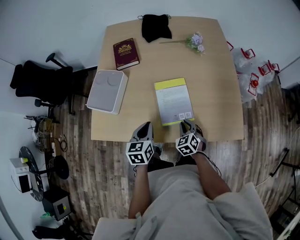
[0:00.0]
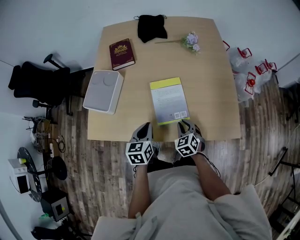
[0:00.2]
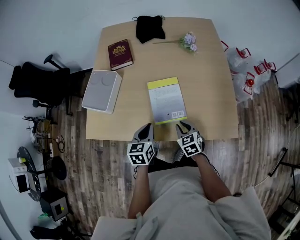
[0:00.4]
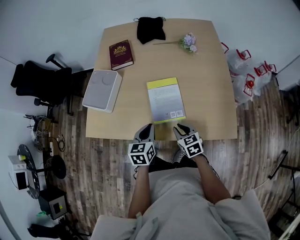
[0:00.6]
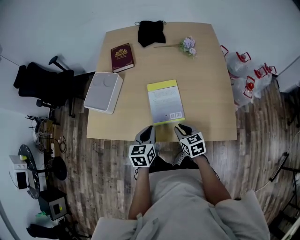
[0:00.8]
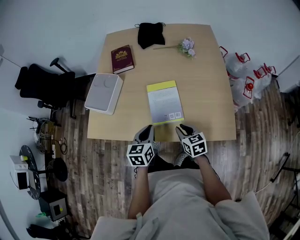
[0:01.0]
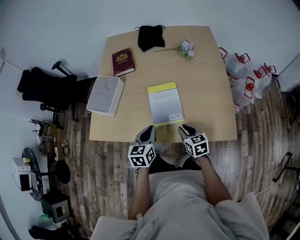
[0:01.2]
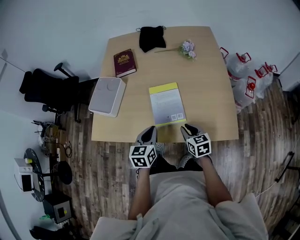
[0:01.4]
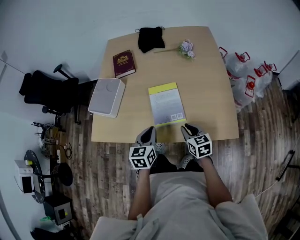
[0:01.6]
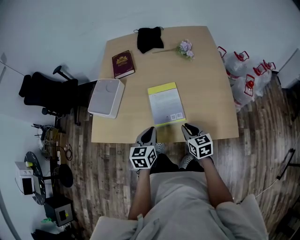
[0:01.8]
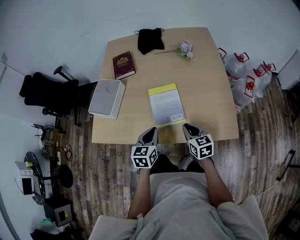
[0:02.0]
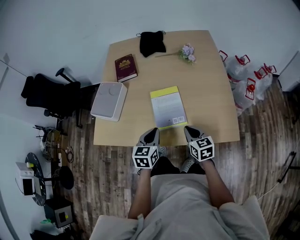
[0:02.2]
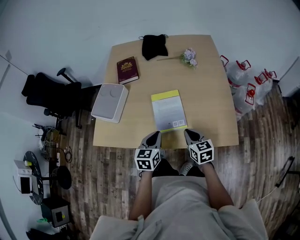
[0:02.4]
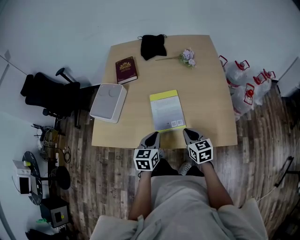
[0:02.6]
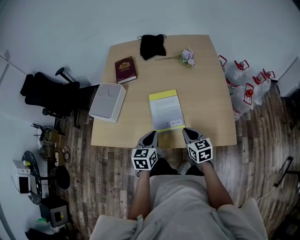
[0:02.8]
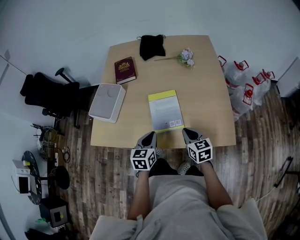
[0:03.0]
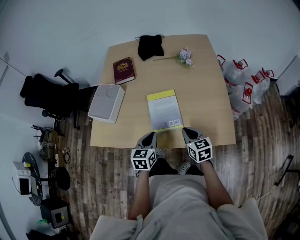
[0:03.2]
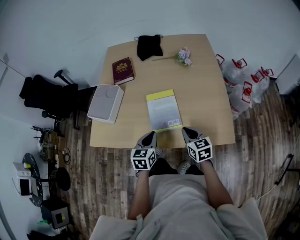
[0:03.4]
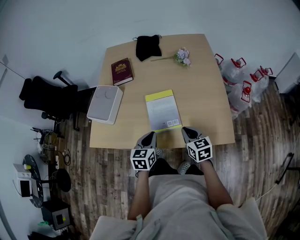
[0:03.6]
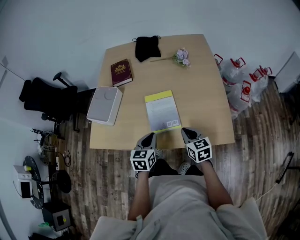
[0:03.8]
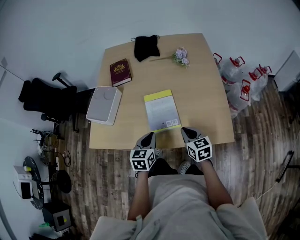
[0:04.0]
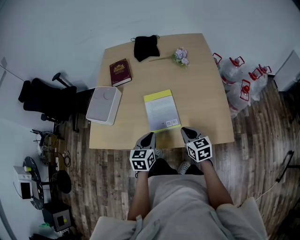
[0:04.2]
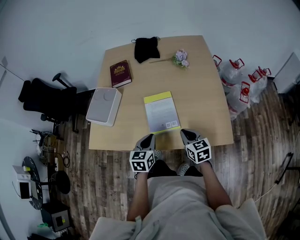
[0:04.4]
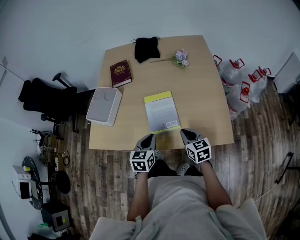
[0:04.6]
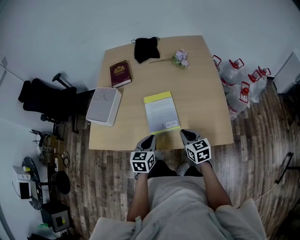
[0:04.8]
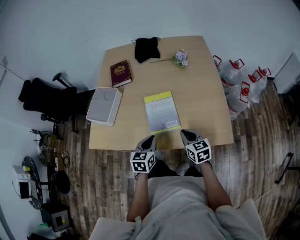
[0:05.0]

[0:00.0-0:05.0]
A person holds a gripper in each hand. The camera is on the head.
0:00.0 to 0:01.6: The left gripper shifts about 10 cm to the right and backward. Meanwhile the right gripper shifts about 10 cm upward and to the right, and turns by some 40 degrees.
0:01.6 to 0:05.0: The grippers stay close to where they were, moving slightly.

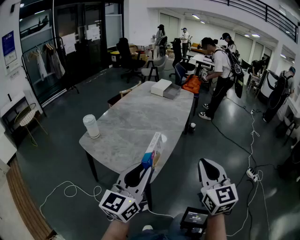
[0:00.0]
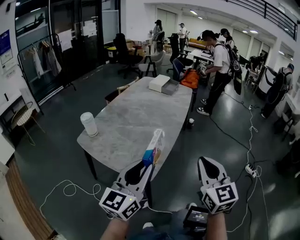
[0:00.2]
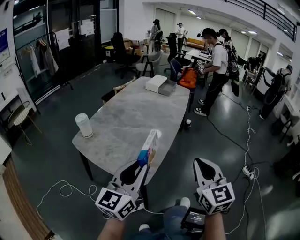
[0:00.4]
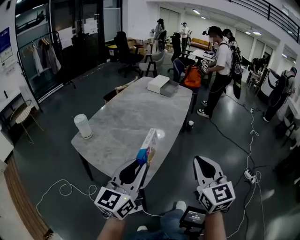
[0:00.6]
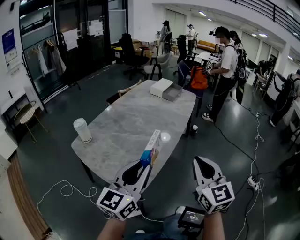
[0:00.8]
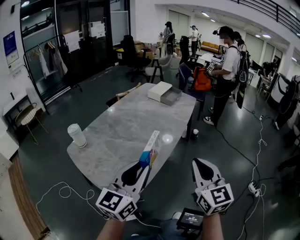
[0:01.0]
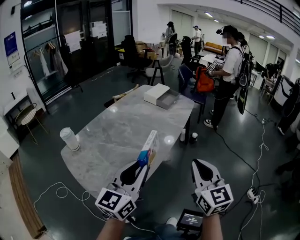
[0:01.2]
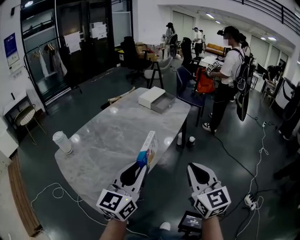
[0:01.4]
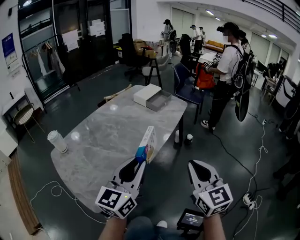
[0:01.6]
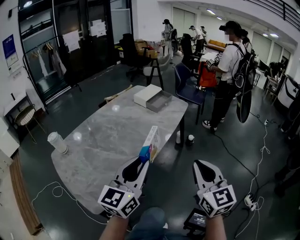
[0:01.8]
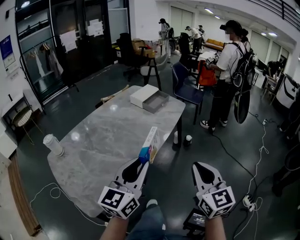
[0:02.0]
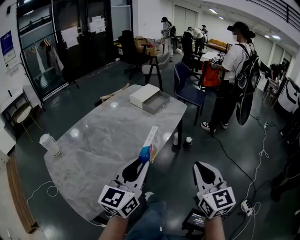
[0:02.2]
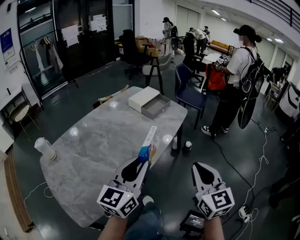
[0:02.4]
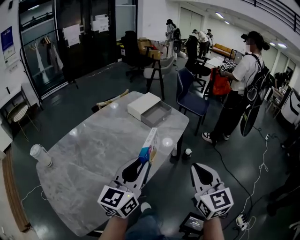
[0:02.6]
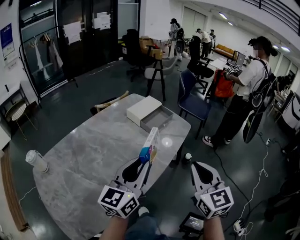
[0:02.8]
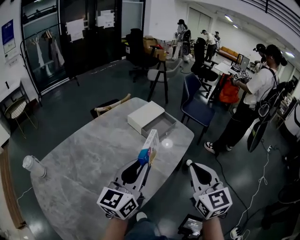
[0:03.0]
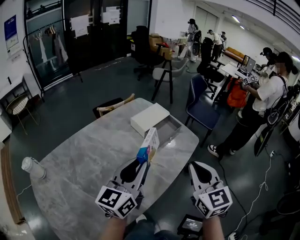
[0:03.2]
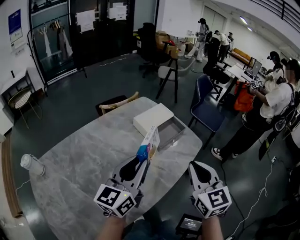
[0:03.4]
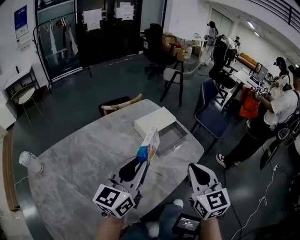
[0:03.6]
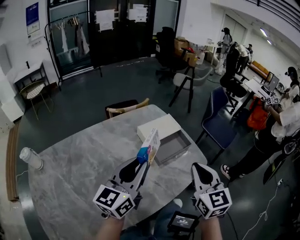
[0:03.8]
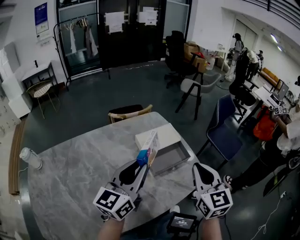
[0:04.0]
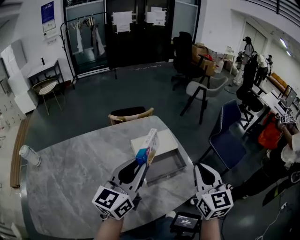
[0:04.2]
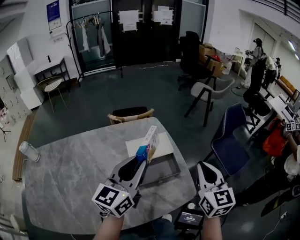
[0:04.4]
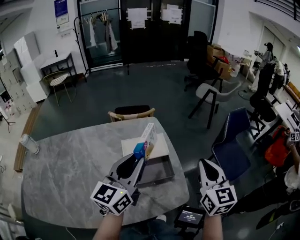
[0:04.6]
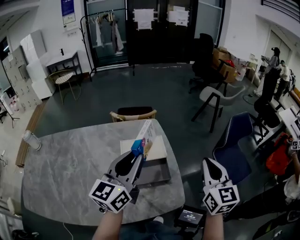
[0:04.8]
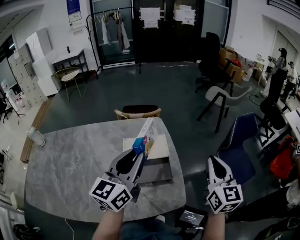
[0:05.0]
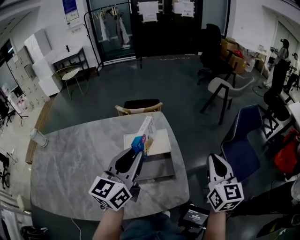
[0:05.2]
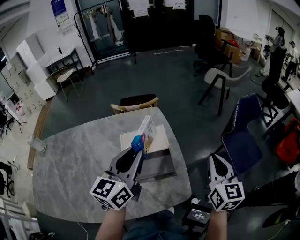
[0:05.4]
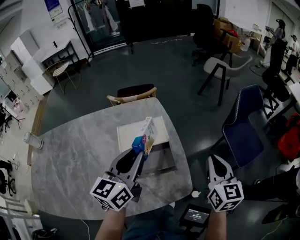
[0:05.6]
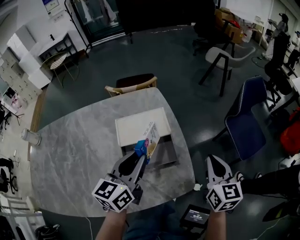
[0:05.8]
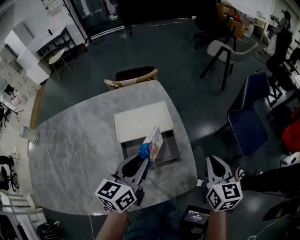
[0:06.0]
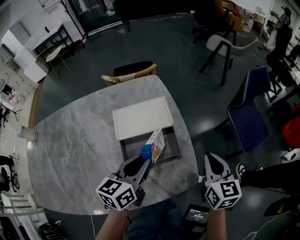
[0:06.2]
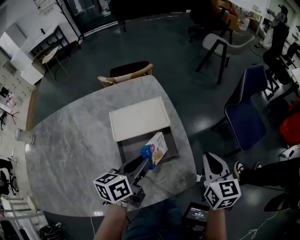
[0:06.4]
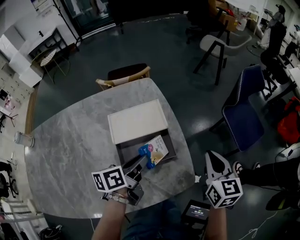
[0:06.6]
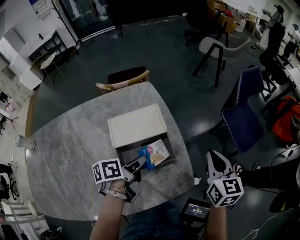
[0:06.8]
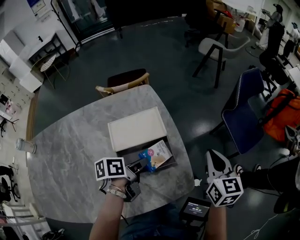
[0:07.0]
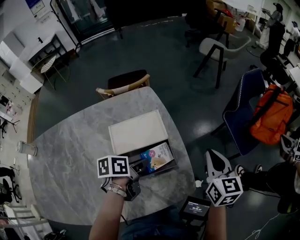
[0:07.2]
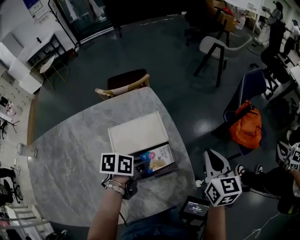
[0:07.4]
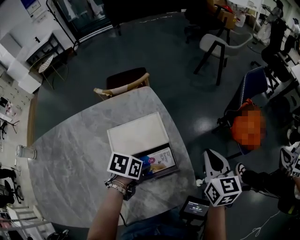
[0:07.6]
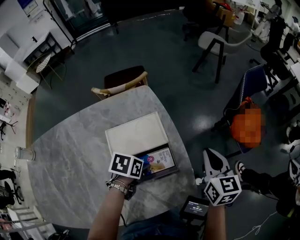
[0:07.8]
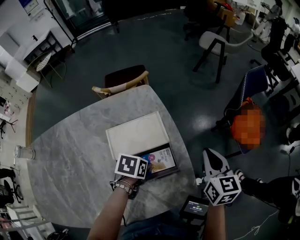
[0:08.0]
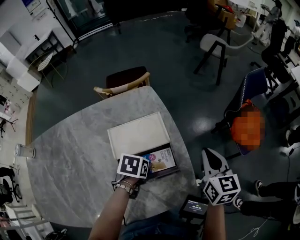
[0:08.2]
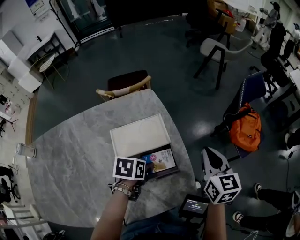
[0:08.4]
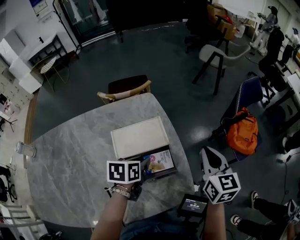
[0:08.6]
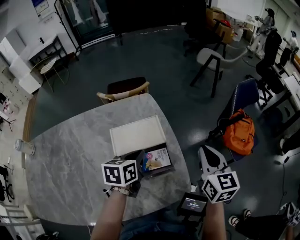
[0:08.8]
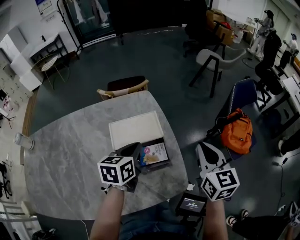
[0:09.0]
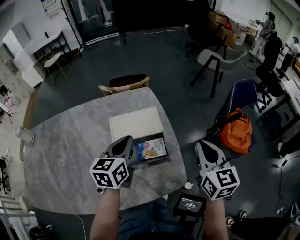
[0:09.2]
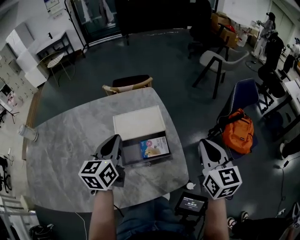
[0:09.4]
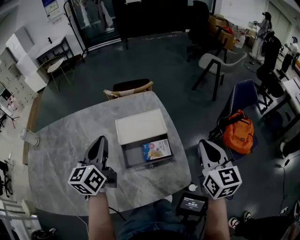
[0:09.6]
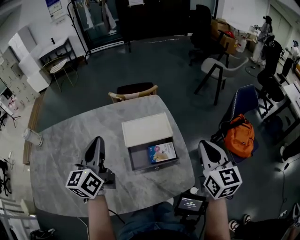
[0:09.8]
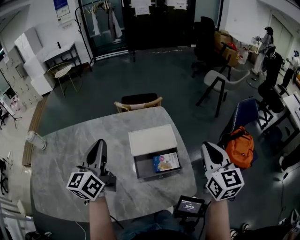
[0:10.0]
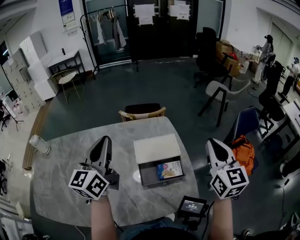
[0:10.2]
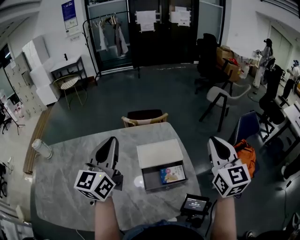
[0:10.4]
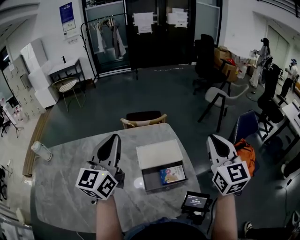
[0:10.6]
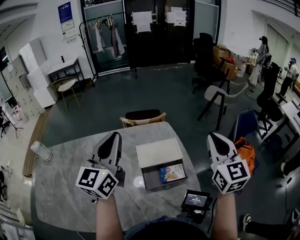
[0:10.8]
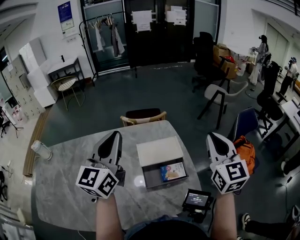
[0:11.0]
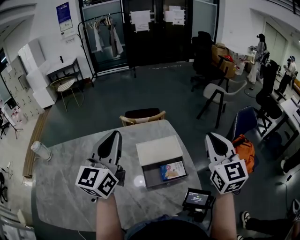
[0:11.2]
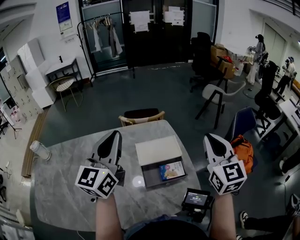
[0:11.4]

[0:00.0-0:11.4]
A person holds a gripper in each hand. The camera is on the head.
0:00.0 to 0:01.4: Both grippers travel together forward and to the right, some 30 cm.
0:01.4 to 0:02.8: Both grippers move forward, about 25 cm.
0:02.8 to 0:04.2: The two grippers go approximately 35 cm forward. The left gripper swivels roughly 20 degrees.
0:04.2 to 0:05.6: Both grippers move to the right, forward and downward, some 15 cm.
0:05.6 to 0:07.2: The right gripper changes place by approximately 5 cm. The left gripper is displaced downward by approximately 20 cm, and tilts its fingers about 30 degrees downward.
0:07.2 to 0:08.6: The left gripper rotates some 20 degrees.
0:08.6 to 0:10.0: The right gripper goes approximately 10 cm upward and to the left, while the left gripper heads upward and to the left, covering about 30 cm, tips its fingers upward by about 50 degrees, and closes.
0:10.0 to 0:11.4: The grippers both shift upward by approximately 10 cm.

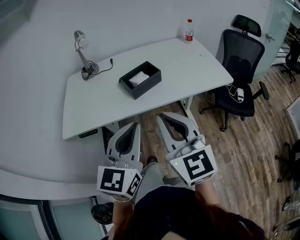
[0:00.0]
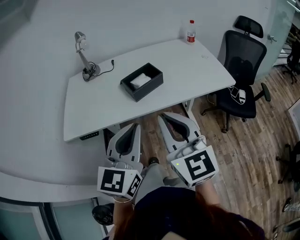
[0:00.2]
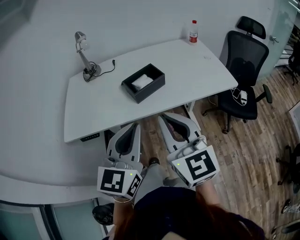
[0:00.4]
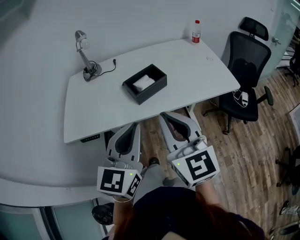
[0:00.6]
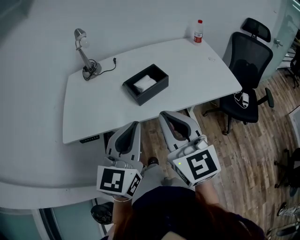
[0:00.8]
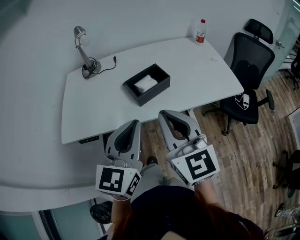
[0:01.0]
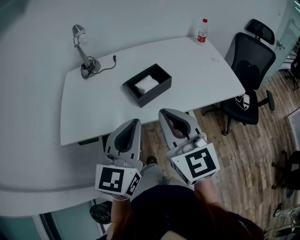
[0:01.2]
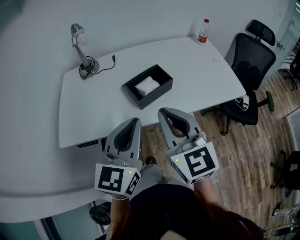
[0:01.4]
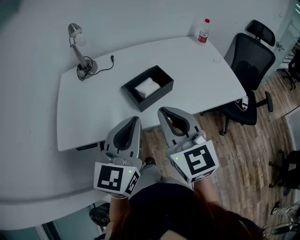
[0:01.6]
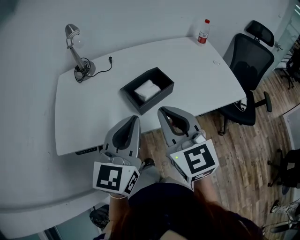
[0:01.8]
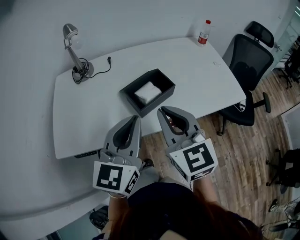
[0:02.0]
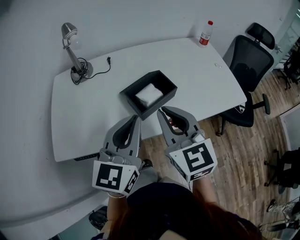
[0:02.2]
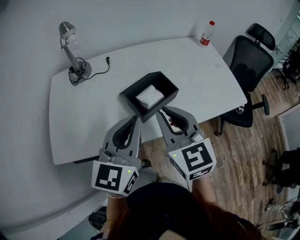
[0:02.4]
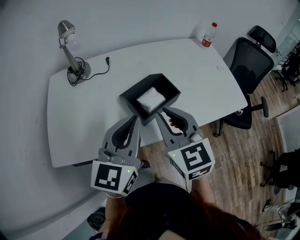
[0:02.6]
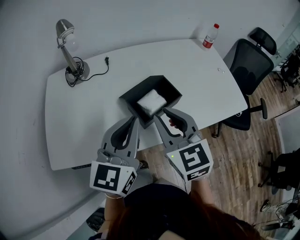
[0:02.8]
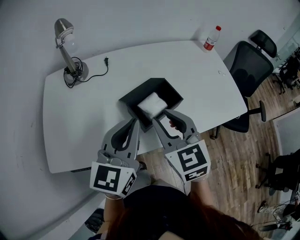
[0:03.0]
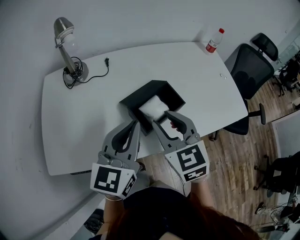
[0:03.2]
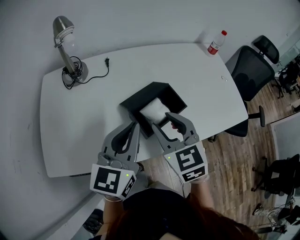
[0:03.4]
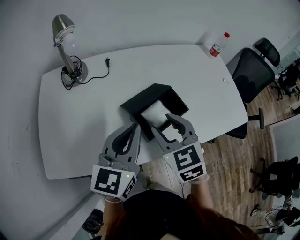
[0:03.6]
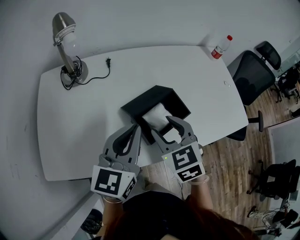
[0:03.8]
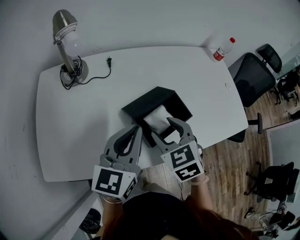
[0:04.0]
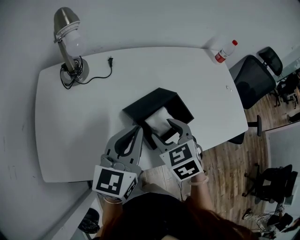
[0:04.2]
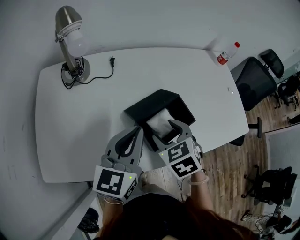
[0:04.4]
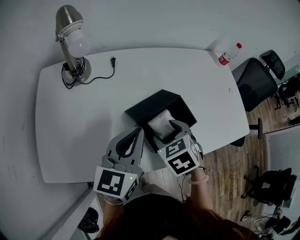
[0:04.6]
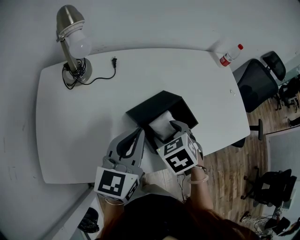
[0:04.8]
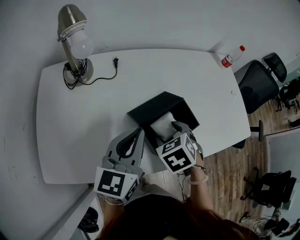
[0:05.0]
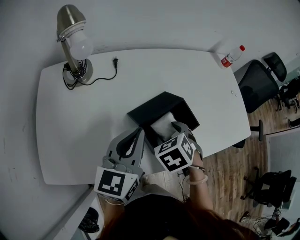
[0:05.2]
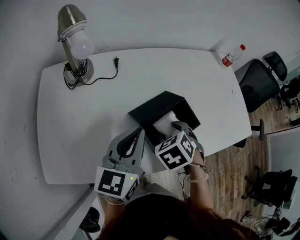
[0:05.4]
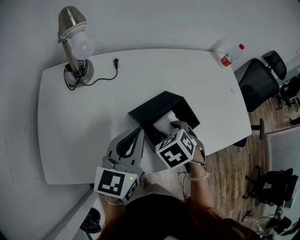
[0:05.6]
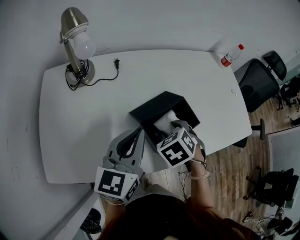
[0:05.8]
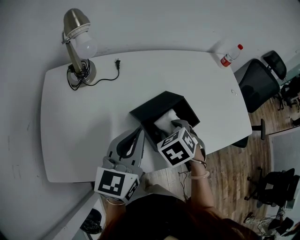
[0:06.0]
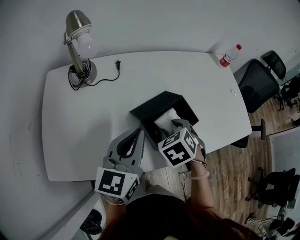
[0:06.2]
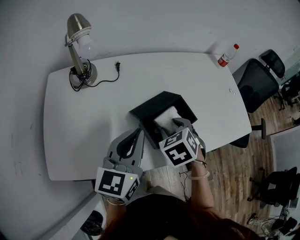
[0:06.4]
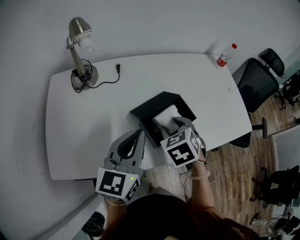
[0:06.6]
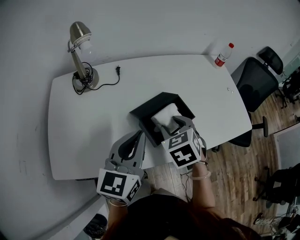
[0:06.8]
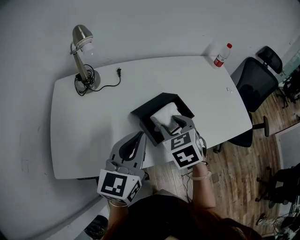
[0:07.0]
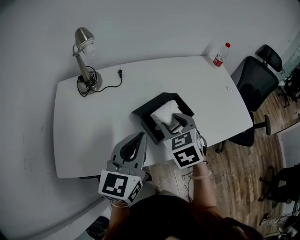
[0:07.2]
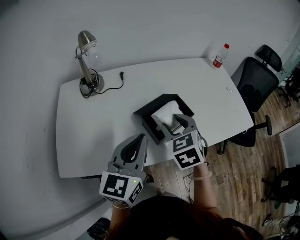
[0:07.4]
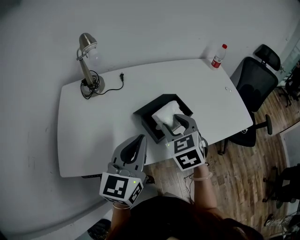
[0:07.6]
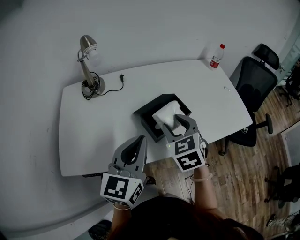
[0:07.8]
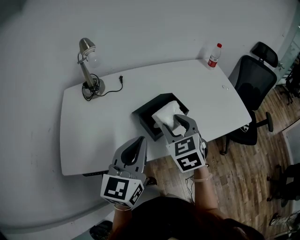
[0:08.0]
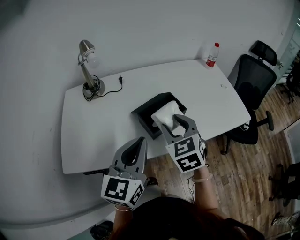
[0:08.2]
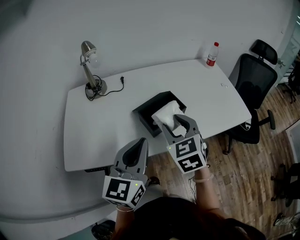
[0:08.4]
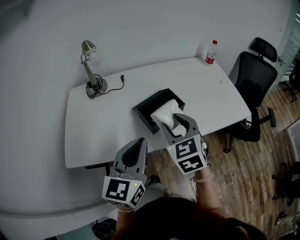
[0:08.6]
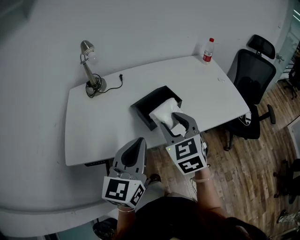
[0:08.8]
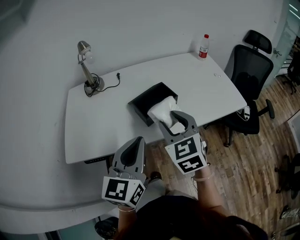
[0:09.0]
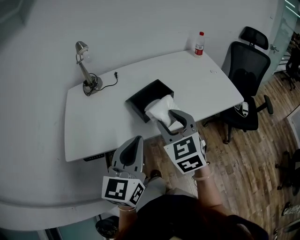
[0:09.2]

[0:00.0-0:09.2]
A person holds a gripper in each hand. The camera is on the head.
0:00.0 to 0:01.6: Both grippers travel together forward, about 15 cm.
0:01.6 to 0:03.0: The left gripper is displaced forward by approximately 10 cm; the right gripper goes some 15 cm forward and downward, and opens.
0:03.0 to 0:04.6: The left gripper is displaced forward and downward by about 10 cm, while the right gripper is displaced downward and forward by approximately 15 cm, tips its fingers downward by some 40 degrees, and opens up.
0:04.6 to 0:06.2: The grippers make only small movements.
0:06.2 to 0:07.6: The left gripper goes approximately 5 cm backward. Meanwhile the right gripper heads upward, covering roughly 10 cm, and changes its angle by roughly 30 degrees.
0:07.6 to 0:09.2: The right gripper moves backward, upward and to the right, about 15 cm. The left gripper travels backward and to the right by some 15 cm.
